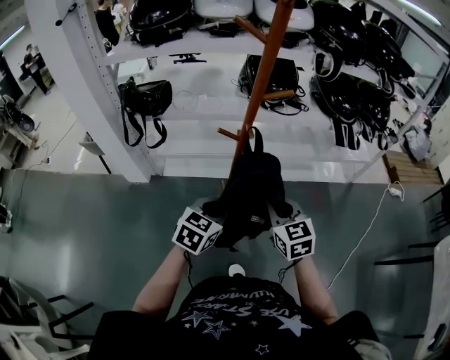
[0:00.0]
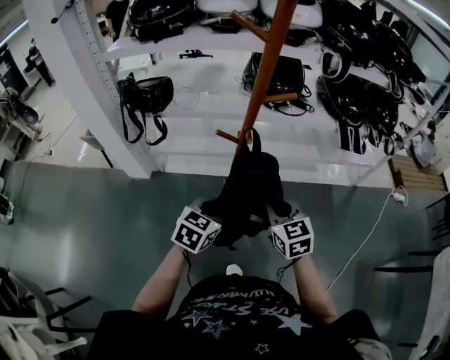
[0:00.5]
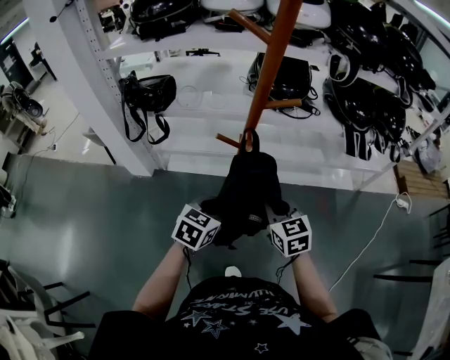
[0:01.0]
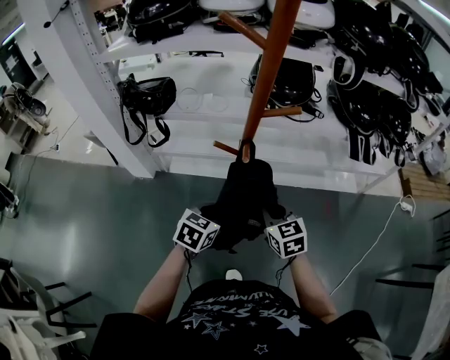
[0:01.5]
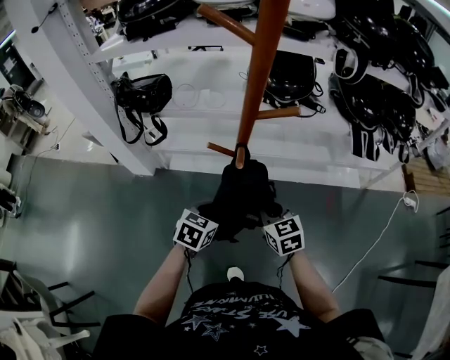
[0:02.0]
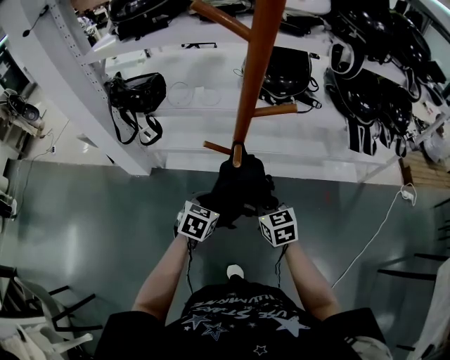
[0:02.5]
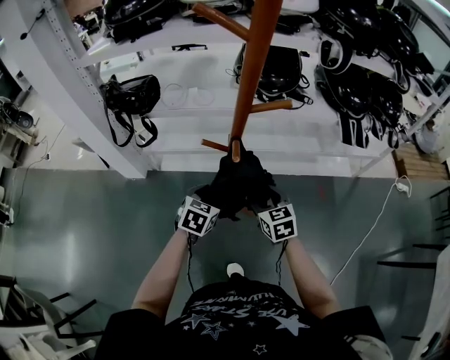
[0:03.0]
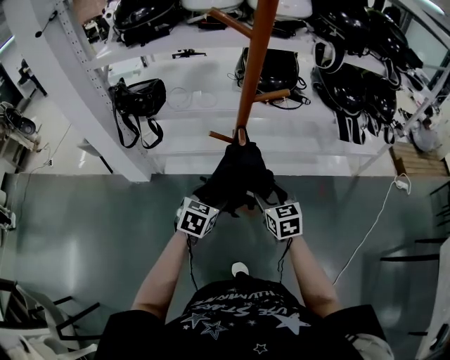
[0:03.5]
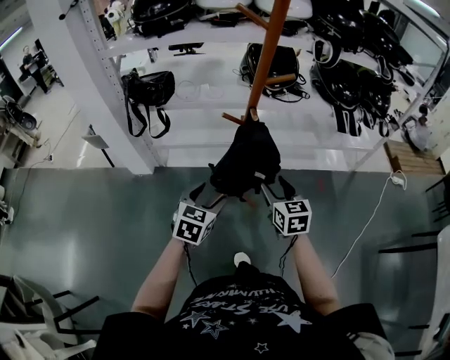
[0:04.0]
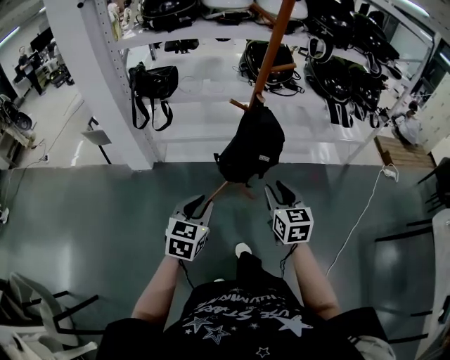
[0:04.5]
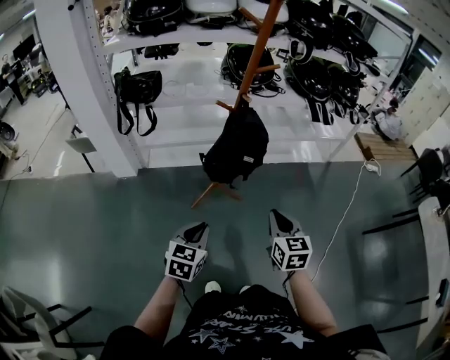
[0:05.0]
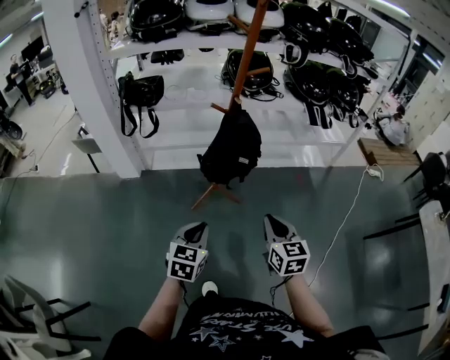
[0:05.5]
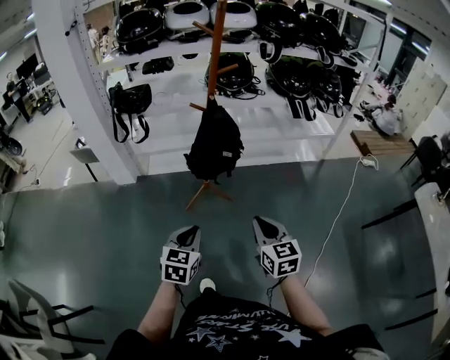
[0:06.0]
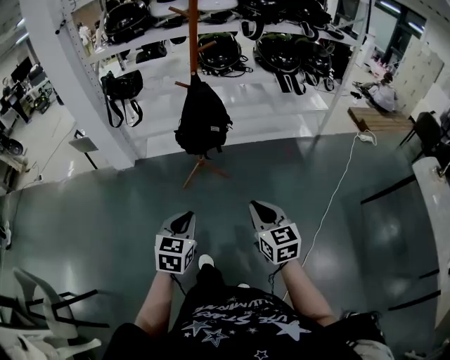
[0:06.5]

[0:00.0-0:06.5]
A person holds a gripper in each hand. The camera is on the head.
0:00.0 to 0:02.0: The grippers both shift forward and downward by about 15 cm.
0:02.0 to 0:04.5: The left gripper is displaced backward and to the left by some 30 cm, and opens, then closes once more, while the right gripper heads backward, covering some 25 cm, turns by about 20 degrees, and opens its fingers.
0:04.5 to 0:06.5: Both grippers travel together backward and to the right, some 30 cm. The right gripper closes its fingers.

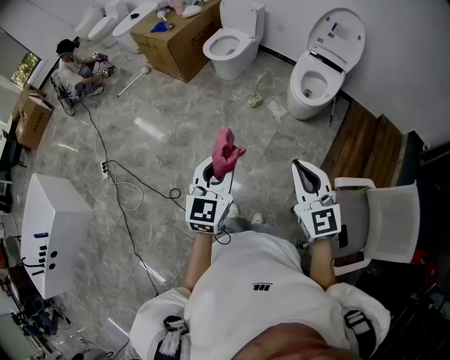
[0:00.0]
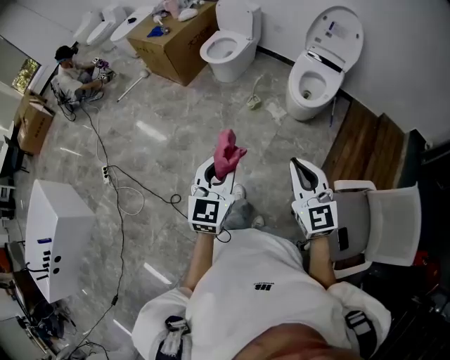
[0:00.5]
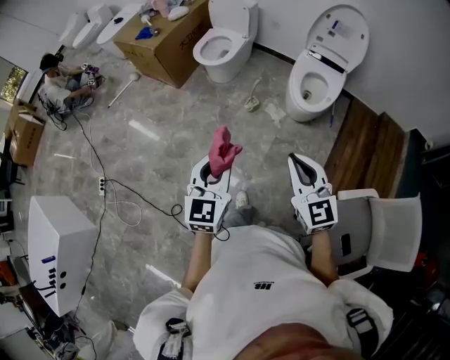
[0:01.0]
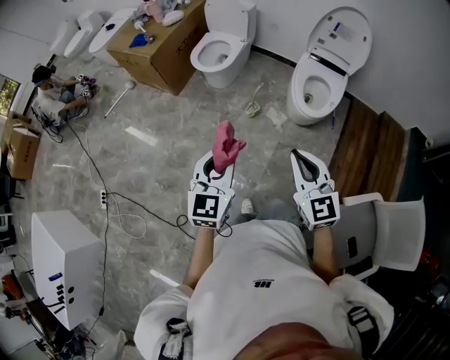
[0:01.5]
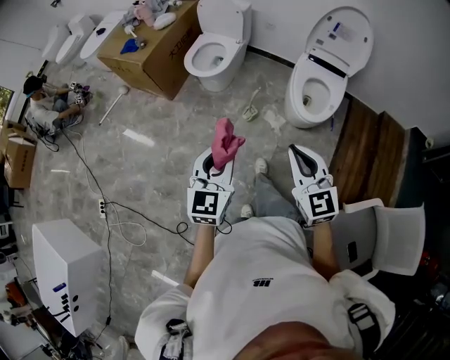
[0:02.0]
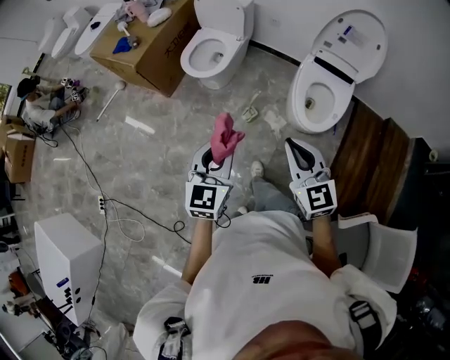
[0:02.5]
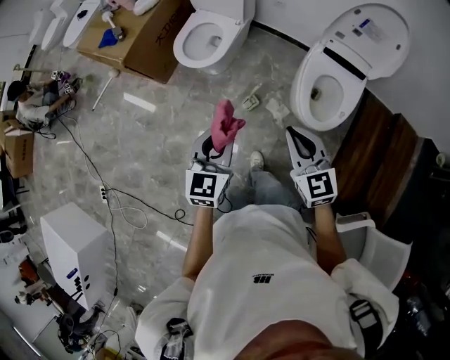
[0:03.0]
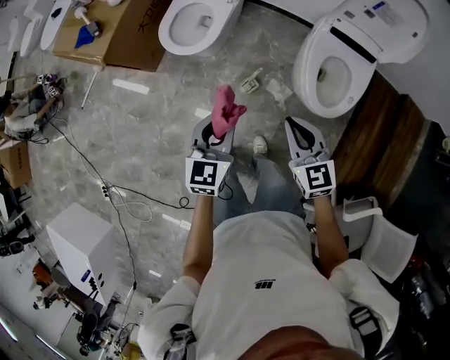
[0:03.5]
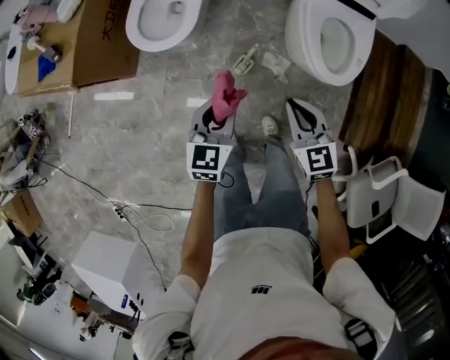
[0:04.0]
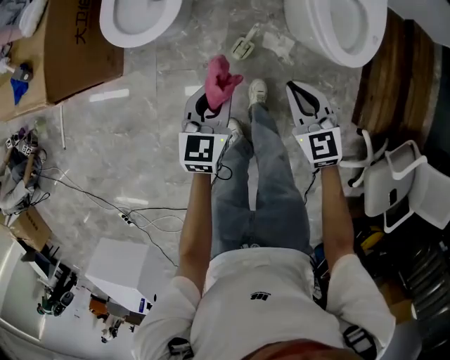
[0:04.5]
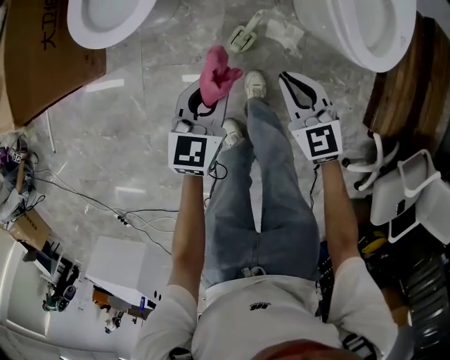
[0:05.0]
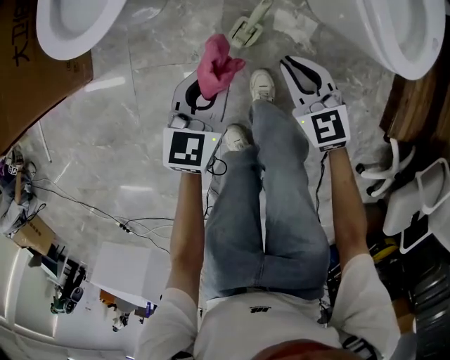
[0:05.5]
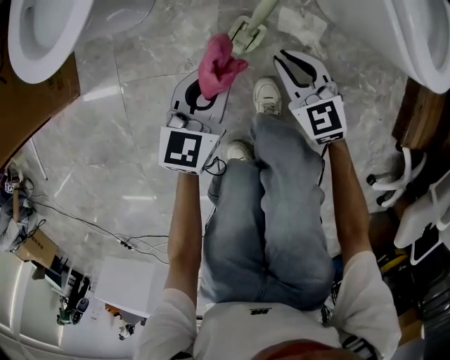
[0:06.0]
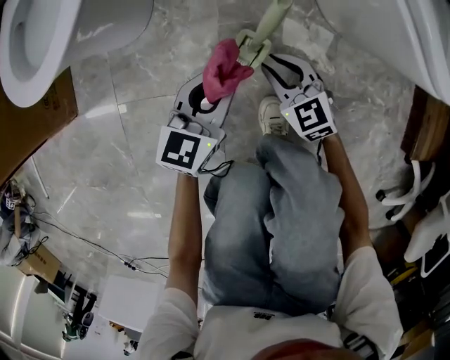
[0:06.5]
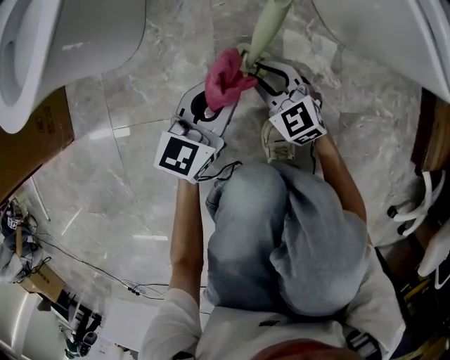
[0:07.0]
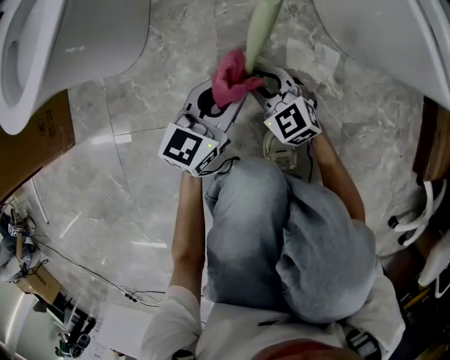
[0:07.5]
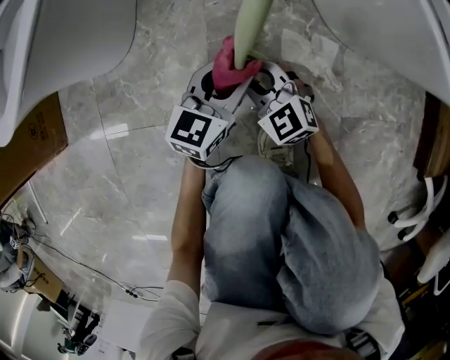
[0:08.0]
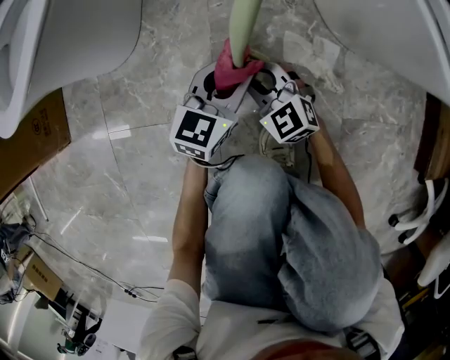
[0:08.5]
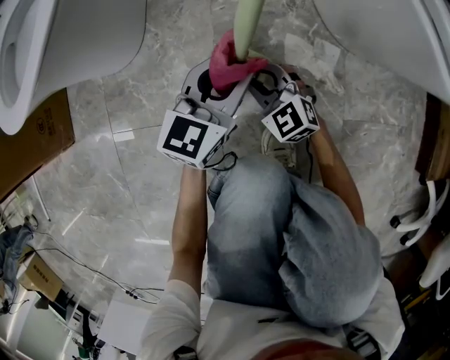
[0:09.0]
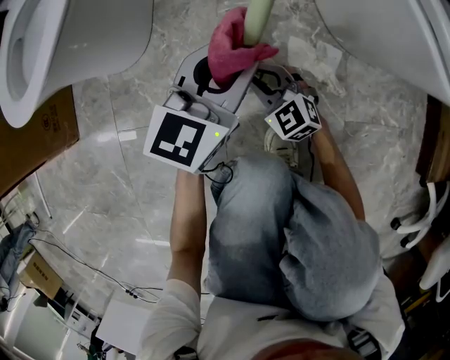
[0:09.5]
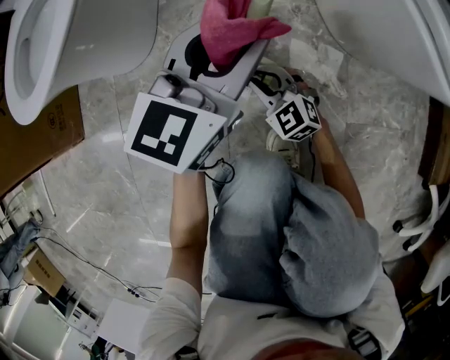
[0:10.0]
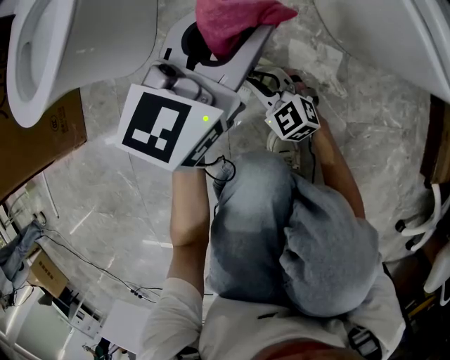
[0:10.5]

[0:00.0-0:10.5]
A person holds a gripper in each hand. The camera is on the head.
0:00.0 to 0:02.0: Both grippers travel together forward, some 35 cm.
0:02.0 to 0:04.0: The grippers both shift forward and downward by roughly 50 cm. The right gripper rotates roughly 20 degrees. Meanwhile the left gripper rotates approximately 30 degrees.
0:04.0 to 0:06.5: The grippers both shift downward by roughly 60 cm. The left gripper changes its angle by approximately 20 degrees.
0:06.5 to 0:08.5: The left gripper is displaced downward, to the right and forward by some 15 cm. Meanwhile the right gripper travels downward by some 10 cm.
0:08.5 to 0:10.5: The left gripper travels upward by some 20 cm.

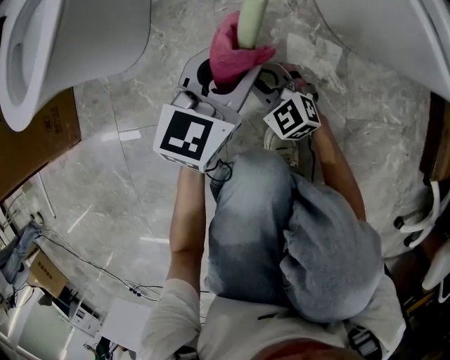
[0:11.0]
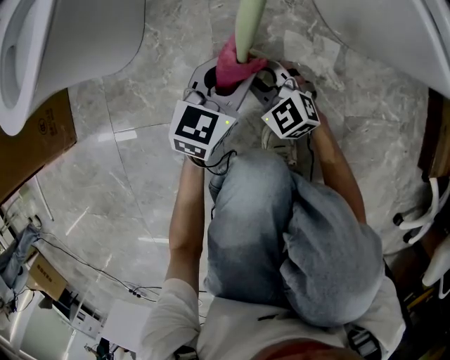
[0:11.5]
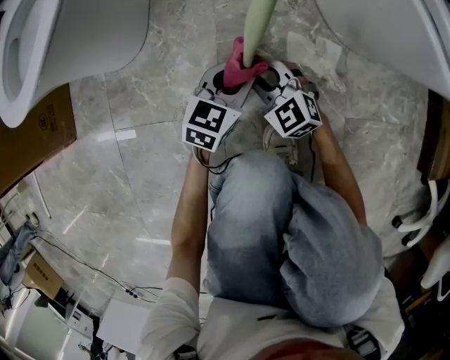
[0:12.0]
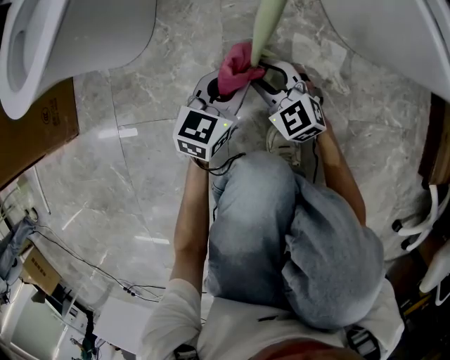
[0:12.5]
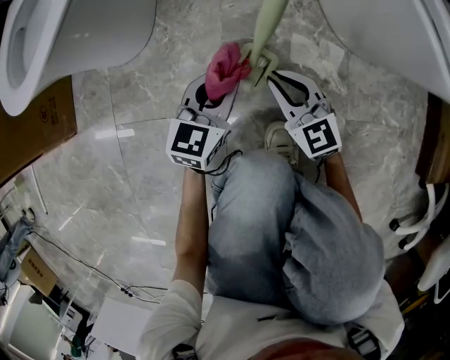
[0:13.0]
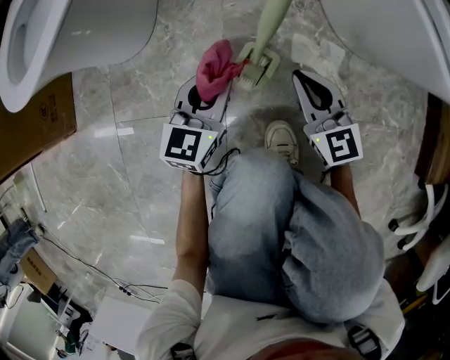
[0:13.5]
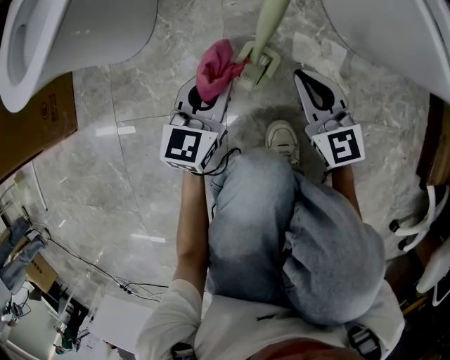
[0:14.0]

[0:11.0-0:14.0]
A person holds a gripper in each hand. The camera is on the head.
0:11.0 to 0:12.5: The left gripper shifts roughly 10 cm downward.
0:12.5 to 0:14.0: The left gripper moves some 5 cm; the right gripper heads upward and to the right, covering roughly 10 cm, swivels approximately 30 degrees, and closes up.

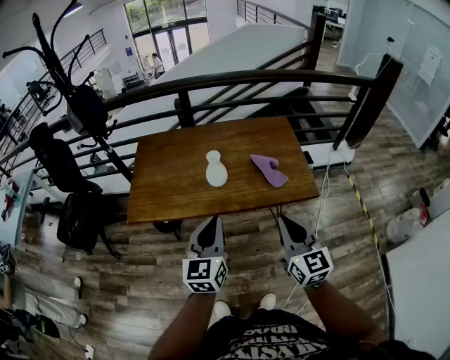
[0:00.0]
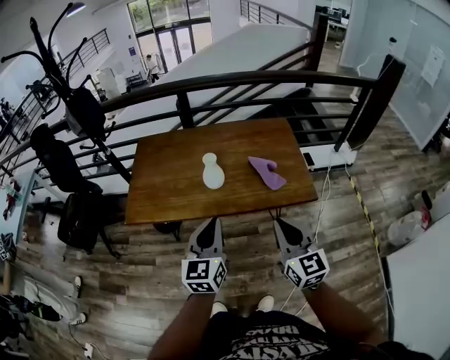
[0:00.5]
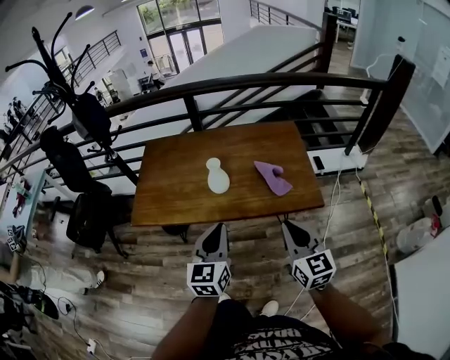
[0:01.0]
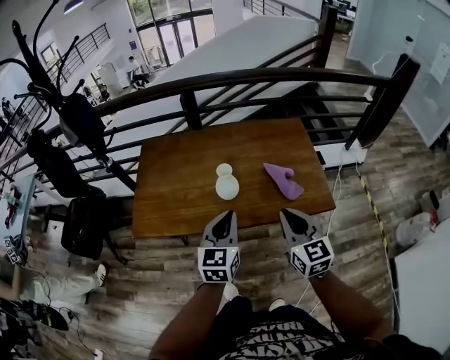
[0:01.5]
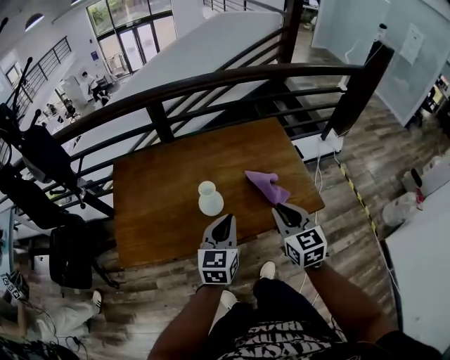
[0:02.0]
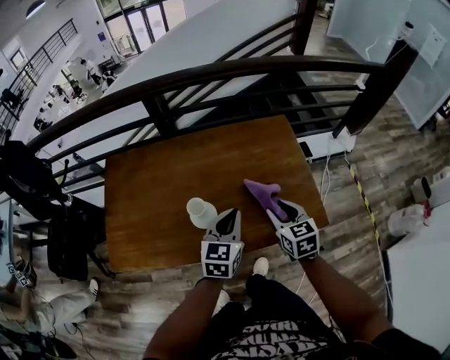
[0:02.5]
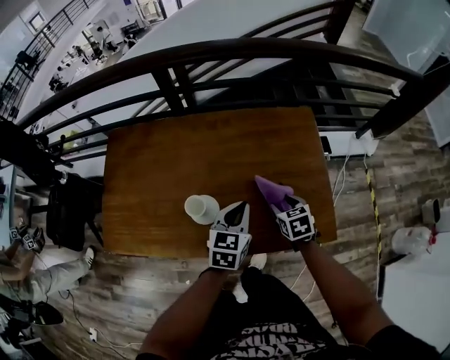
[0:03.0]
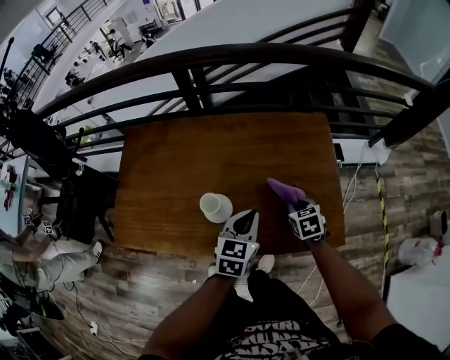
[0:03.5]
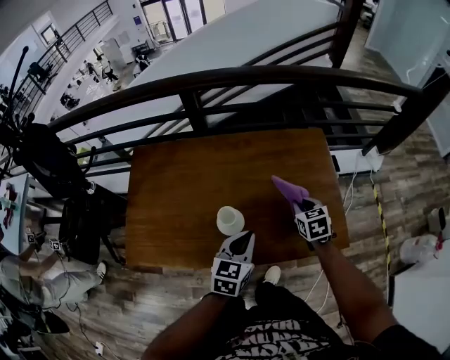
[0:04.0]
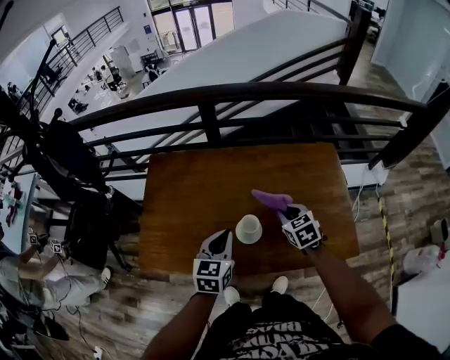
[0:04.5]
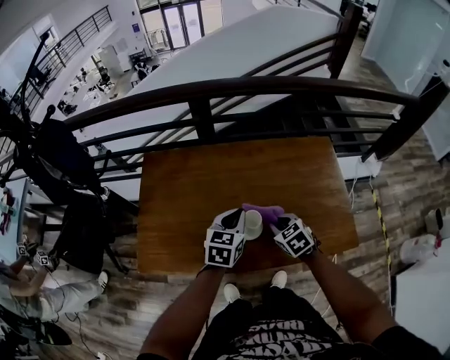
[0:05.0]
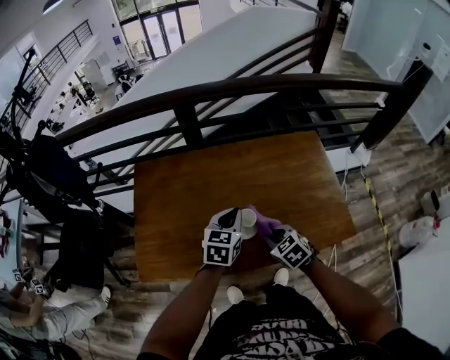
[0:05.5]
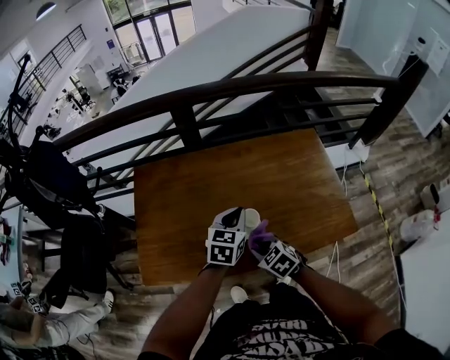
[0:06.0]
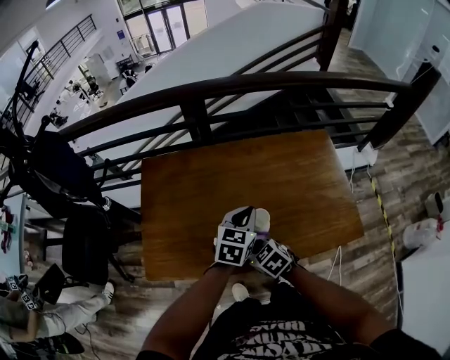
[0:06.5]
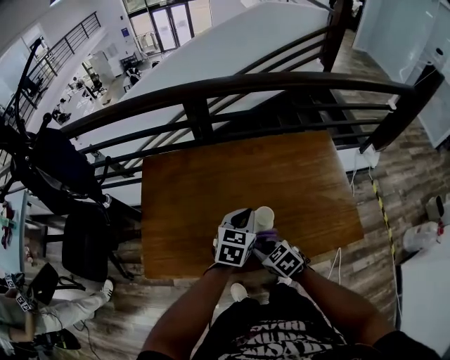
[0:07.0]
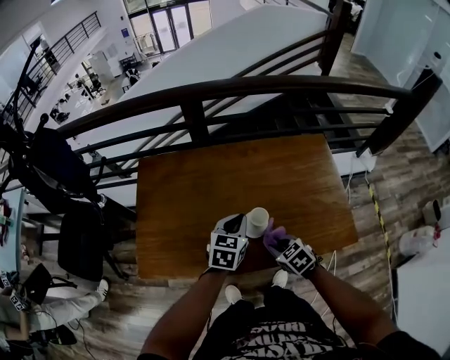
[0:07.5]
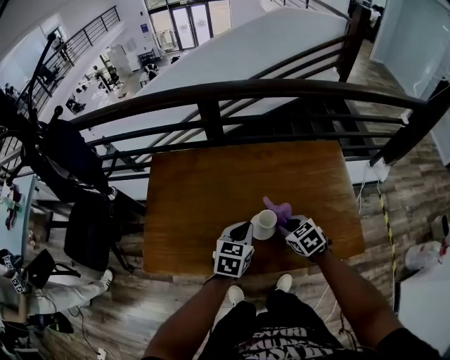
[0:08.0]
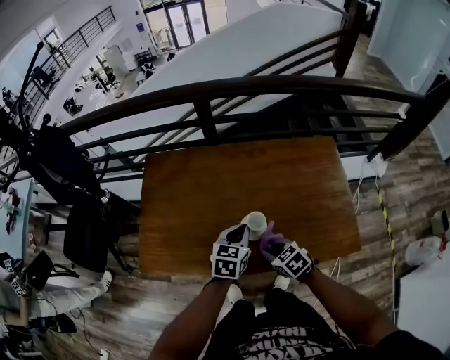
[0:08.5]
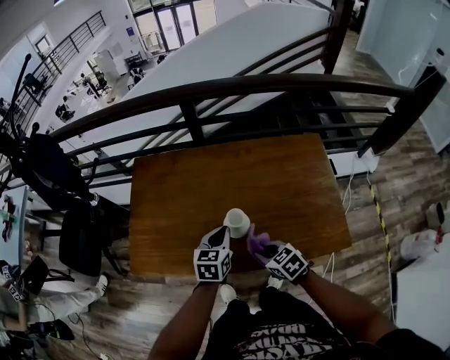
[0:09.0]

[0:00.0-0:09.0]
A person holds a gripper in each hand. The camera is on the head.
0:00.0 to 0:02.0: The grippers both shift forward by approximately 20 cm.
0:02.0 to 0:04.5: The left gripper shifts roughly 20 cm forward, to the left and downward. Meanwhile the right gripper moves forward and downward, about 25 cm, changes its angle by about 30 degrees, and opens and closes again.
0:04.5 to 0:07.0: The left gripper shifts by about 5 cm. The right gripper shifts approximately 20 cm to the left and backward.
0:07.0 to 0:09.0: The right gripper moves to the right, some 10 cm. Meanwhile the left gripper changes place by roughly 5 cm.
